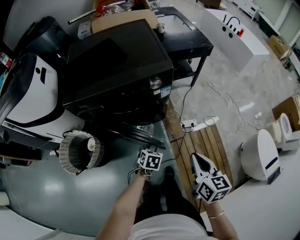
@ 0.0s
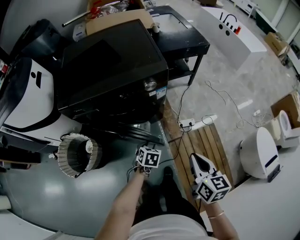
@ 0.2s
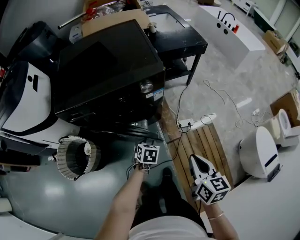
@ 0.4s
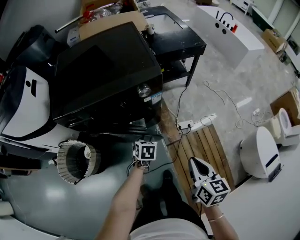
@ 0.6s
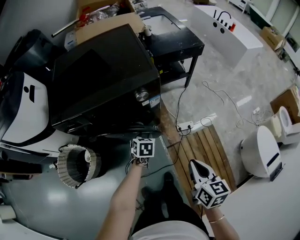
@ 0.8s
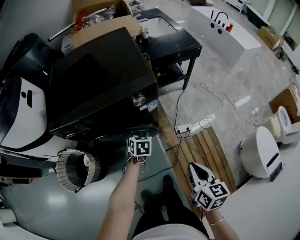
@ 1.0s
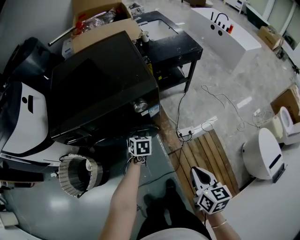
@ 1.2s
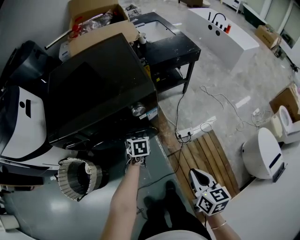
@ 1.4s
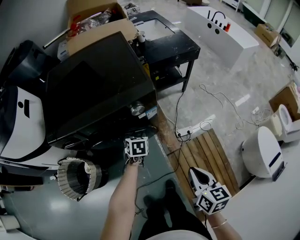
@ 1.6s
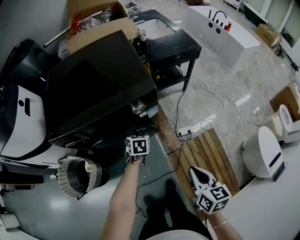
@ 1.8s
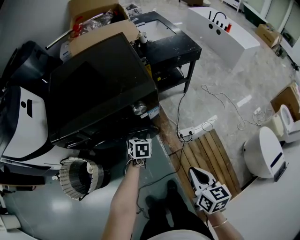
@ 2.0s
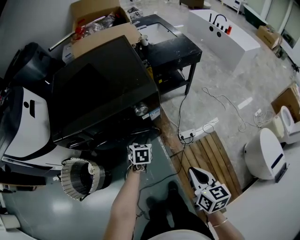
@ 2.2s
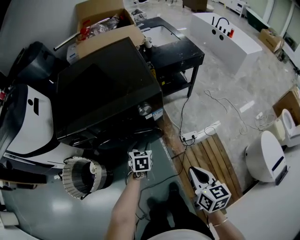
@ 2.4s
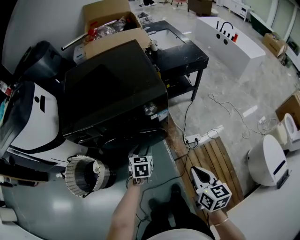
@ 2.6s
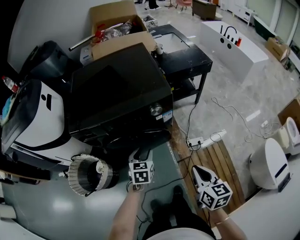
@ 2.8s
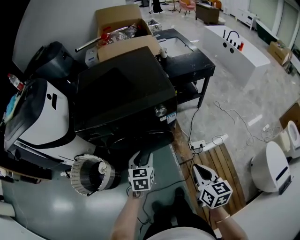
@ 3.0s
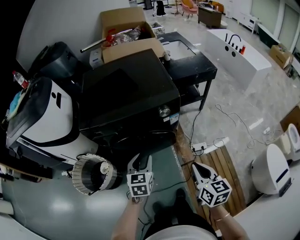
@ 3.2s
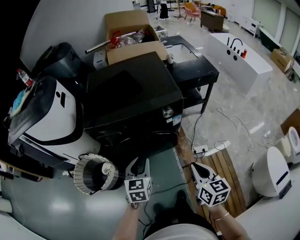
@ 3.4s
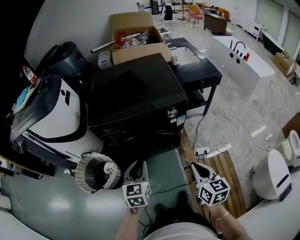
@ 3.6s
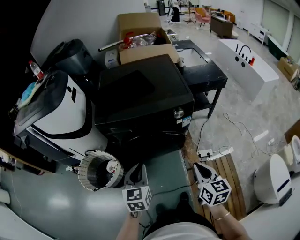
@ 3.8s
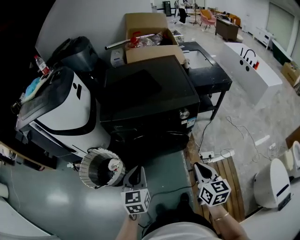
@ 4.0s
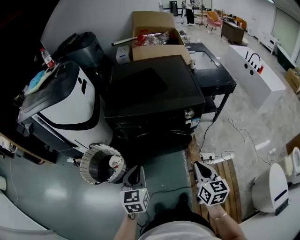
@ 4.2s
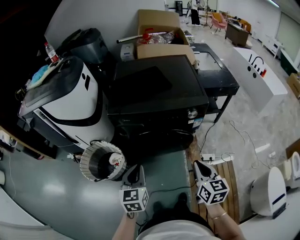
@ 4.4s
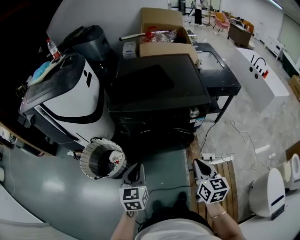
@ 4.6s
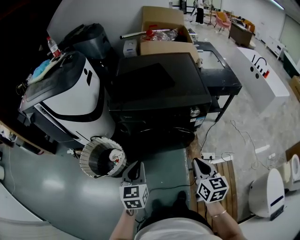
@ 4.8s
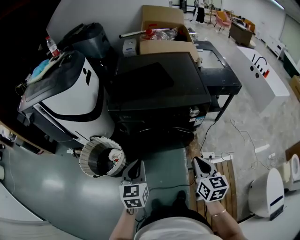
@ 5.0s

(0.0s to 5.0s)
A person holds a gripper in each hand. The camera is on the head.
0.0s - 1.6s: The left gripper heads forward, covering roughly 25 cm. The right gripper travels forward and to the right by about 10 cm.
1.6s - 3.4s: The right gripper travels to the left and upward by about 15 cm. Meanwhile the left gripper moves upward, backward and to the left, about 35 cm, and swivels approximately 30 degrees.
3.4s - 5.0s: Both grippers travel together to the left, roughly 10 cm. The left gripper closes.

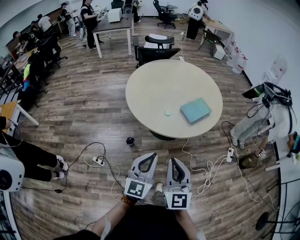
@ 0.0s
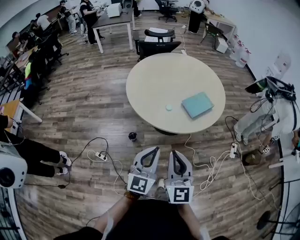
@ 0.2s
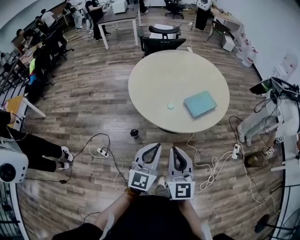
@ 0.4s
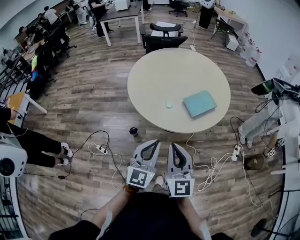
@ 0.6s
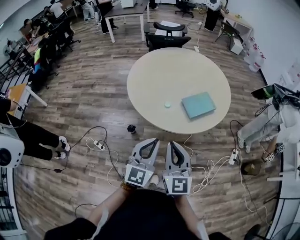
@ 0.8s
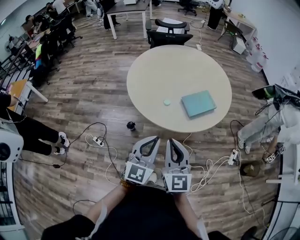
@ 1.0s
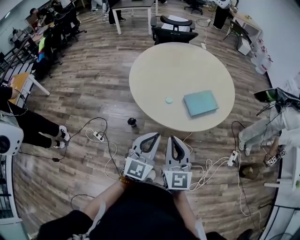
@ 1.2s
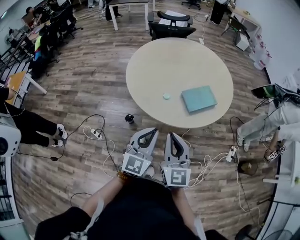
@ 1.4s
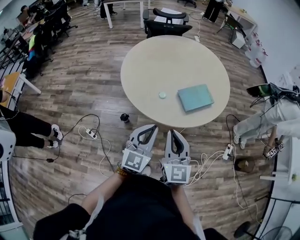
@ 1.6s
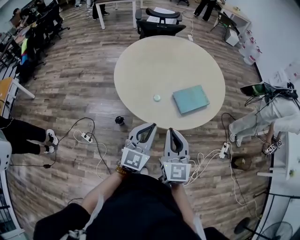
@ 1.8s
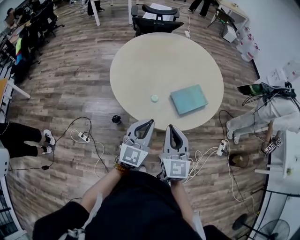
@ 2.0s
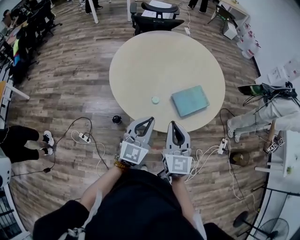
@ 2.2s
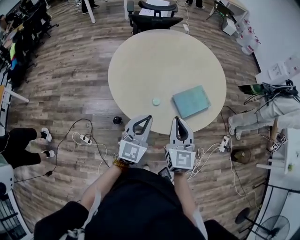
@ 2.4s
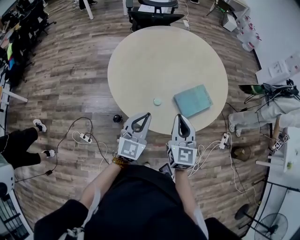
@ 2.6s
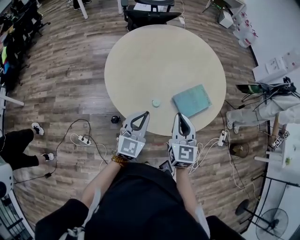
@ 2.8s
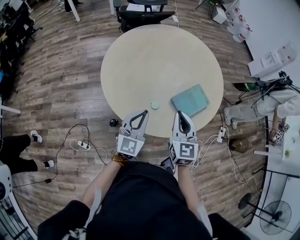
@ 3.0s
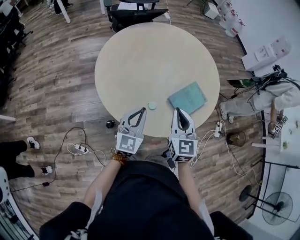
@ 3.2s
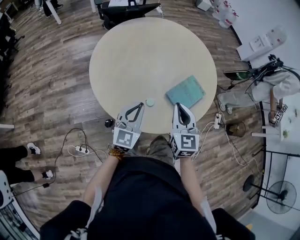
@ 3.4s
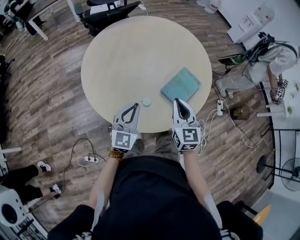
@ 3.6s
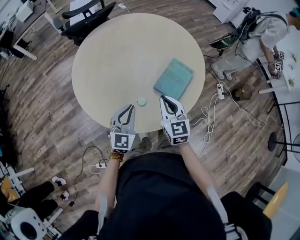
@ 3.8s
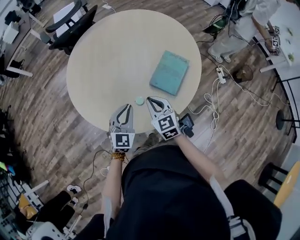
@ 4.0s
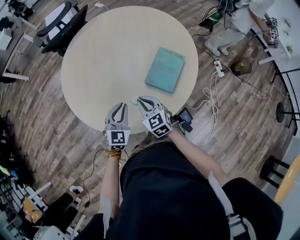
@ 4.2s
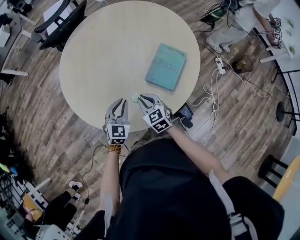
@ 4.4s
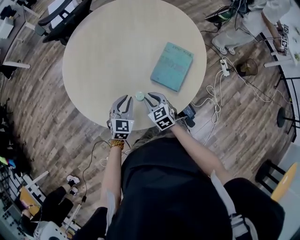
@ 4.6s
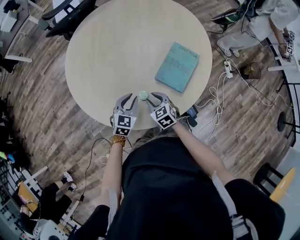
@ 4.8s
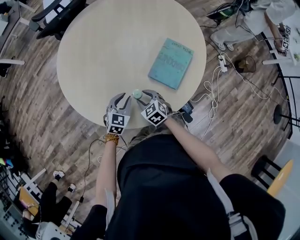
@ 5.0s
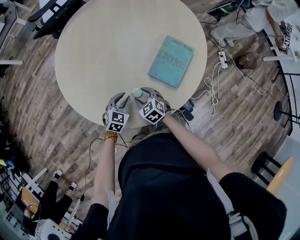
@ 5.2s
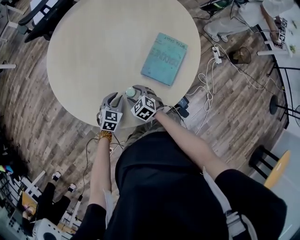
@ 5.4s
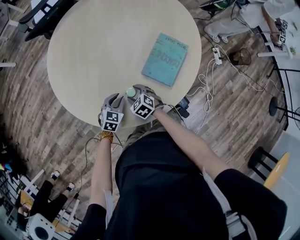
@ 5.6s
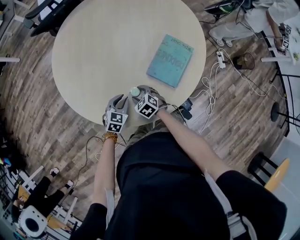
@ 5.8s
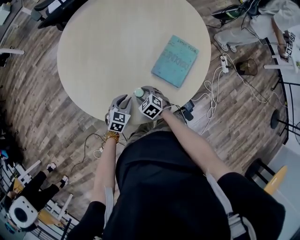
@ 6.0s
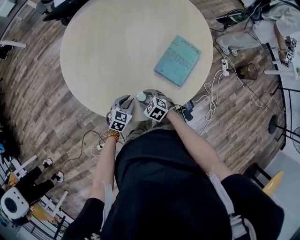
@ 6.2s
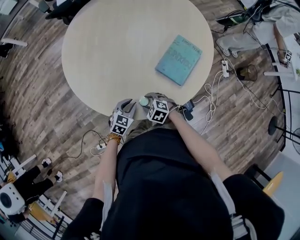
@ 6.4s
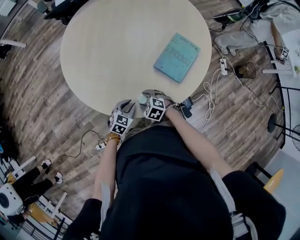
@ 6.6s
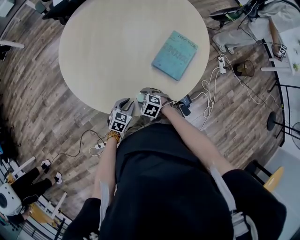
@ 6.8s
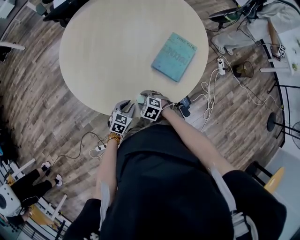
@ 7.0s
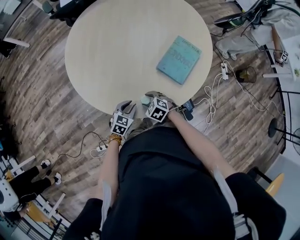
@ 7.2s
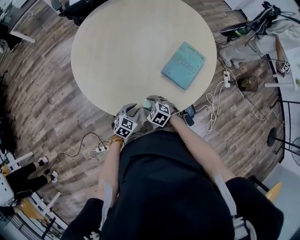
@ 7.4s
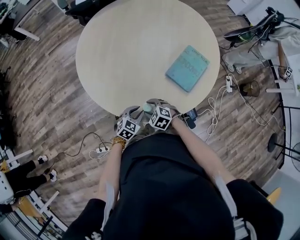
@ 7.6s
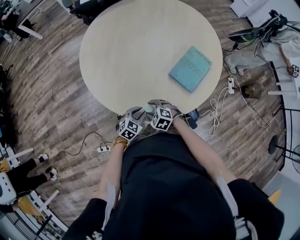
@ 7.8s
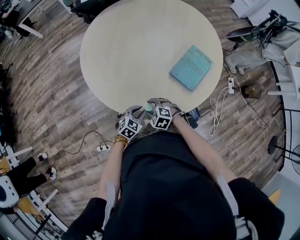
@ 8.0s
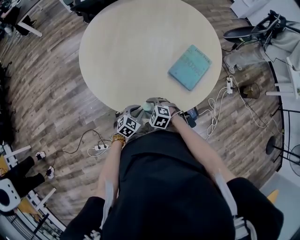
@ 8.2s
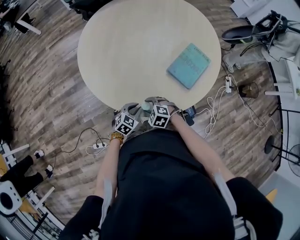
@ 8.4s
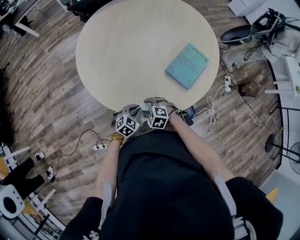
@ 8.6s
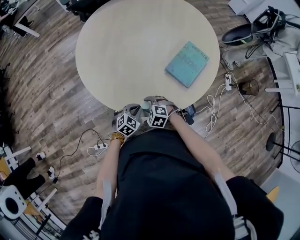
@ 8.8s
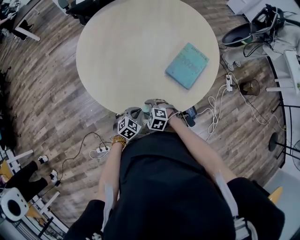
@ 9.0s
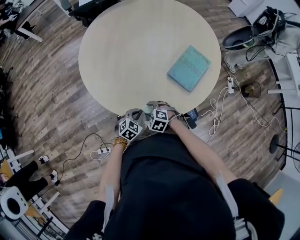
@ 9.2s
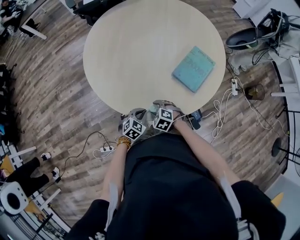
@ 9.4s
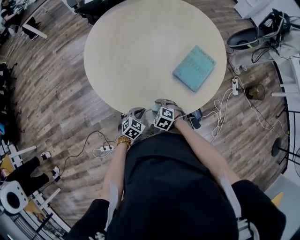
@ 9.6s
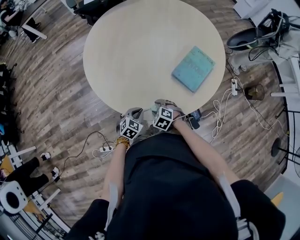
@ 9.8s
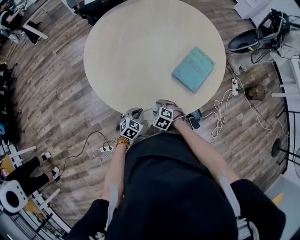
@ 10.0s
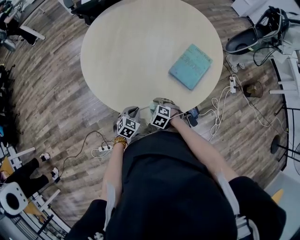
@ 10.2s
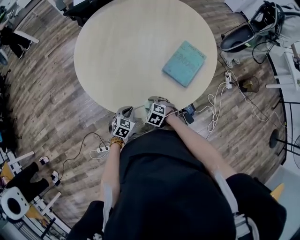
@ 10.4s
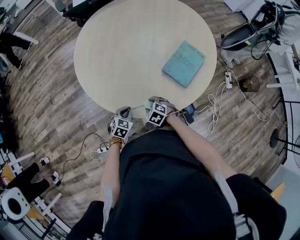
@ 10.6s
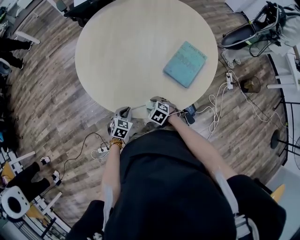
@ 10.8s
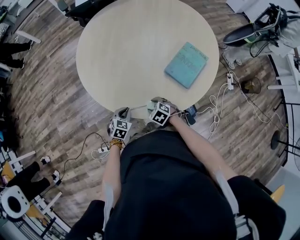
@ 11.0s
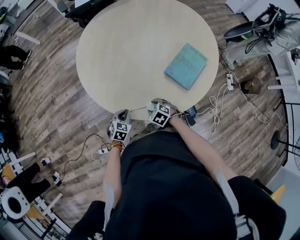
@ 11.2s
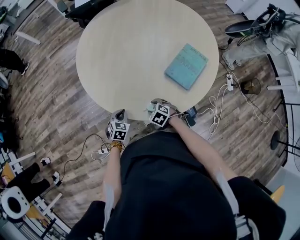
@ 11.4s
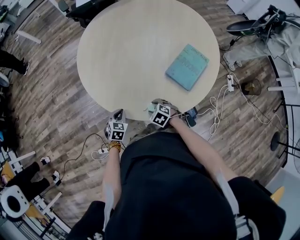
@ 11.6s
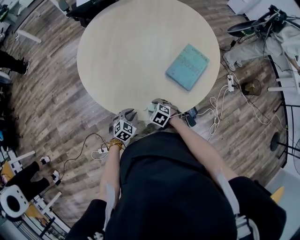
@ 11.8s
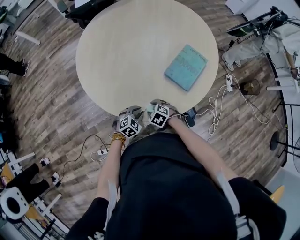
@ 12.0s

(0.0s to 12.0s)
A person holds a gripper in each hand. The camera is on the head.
0.0s - 1.6s: Both grippers travel together forward and to the right, some 20 cm.
1.6s - 3.0s: The right gripper heads forward, covering some 25 cm. The left gripper heads forward and to the left, covering approximately 25 cm.
3.0s - 4.4s: The left gripper shifts roughly 20 cm downward and forward, and swivels roughly 30 degrees. Meanwhile the right gripper travels downward by some 20 cm.
4.4s - 6.0s: Both grippers travel together downward, some 15 cm. The right gripper changes its angle by about 30 degrees, and opens up, while the left gripper changes its angle by approximately 20 degrees.
6.0s - 7.6s: Both grippers travel together backward, about 10 cm. The right gripper changes its angle by approximately 20 degrees.
7.6s - 9.0s: The left gripper closes its fingers.
9.0s - 10.4s: There are only small adjustments of the grippers.
10.4s - 12.0s: The left gripper ends up roughly 5 cm from where it was, swivels approximately 20 degrees, and opens its fingers.

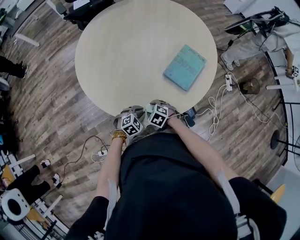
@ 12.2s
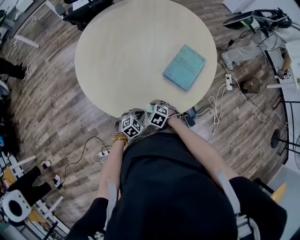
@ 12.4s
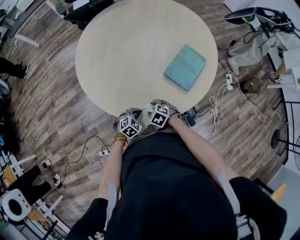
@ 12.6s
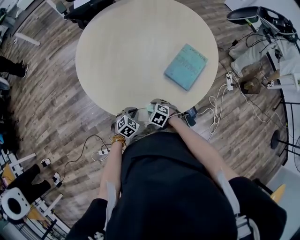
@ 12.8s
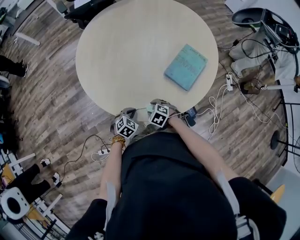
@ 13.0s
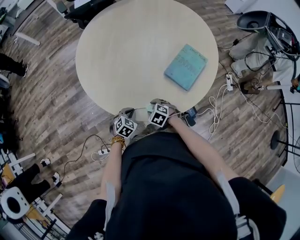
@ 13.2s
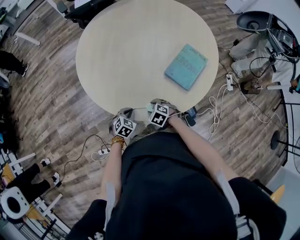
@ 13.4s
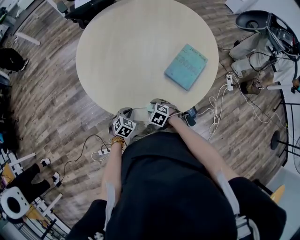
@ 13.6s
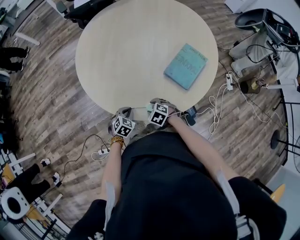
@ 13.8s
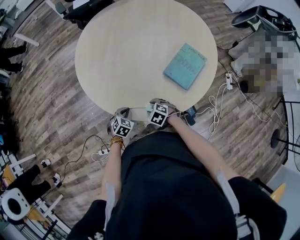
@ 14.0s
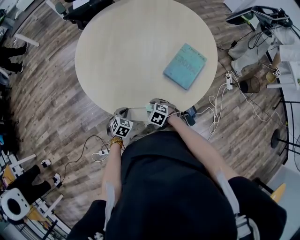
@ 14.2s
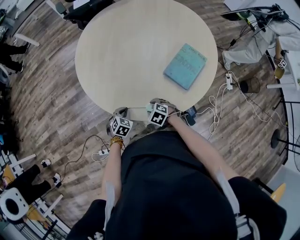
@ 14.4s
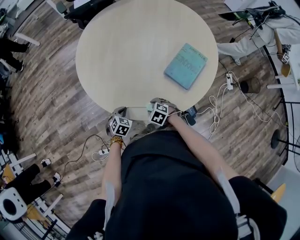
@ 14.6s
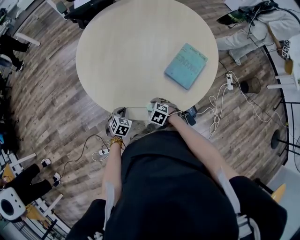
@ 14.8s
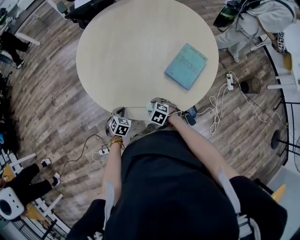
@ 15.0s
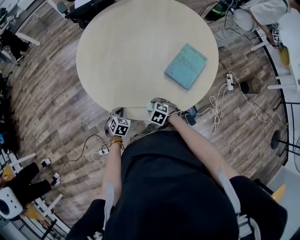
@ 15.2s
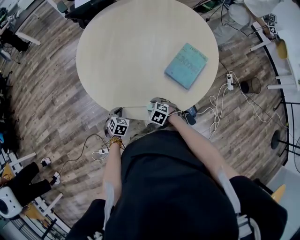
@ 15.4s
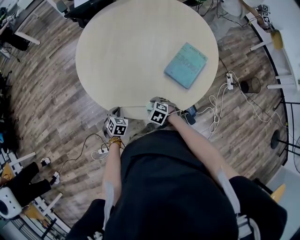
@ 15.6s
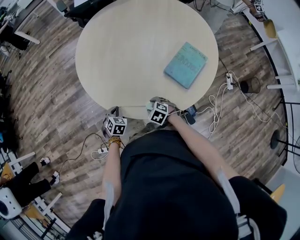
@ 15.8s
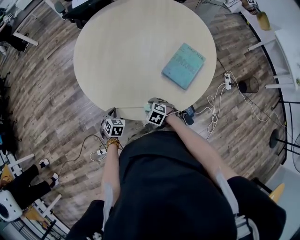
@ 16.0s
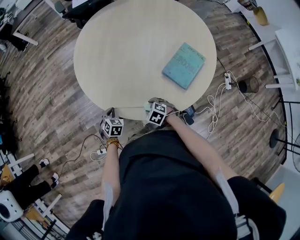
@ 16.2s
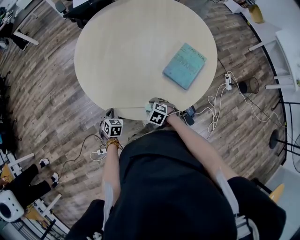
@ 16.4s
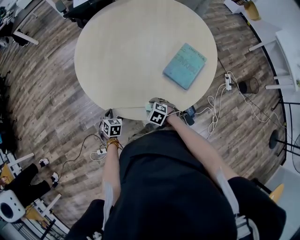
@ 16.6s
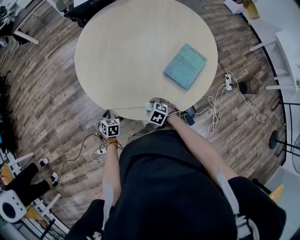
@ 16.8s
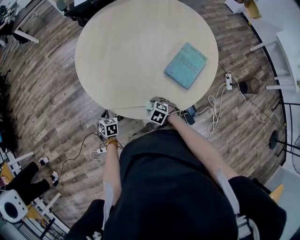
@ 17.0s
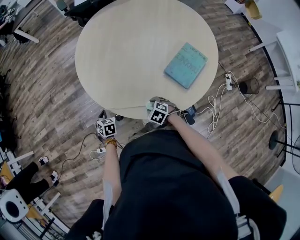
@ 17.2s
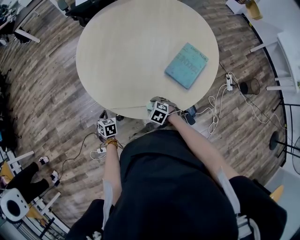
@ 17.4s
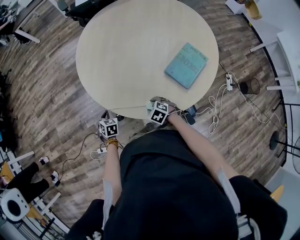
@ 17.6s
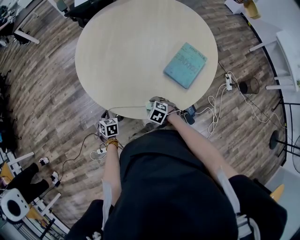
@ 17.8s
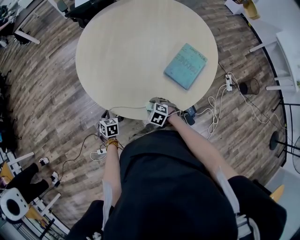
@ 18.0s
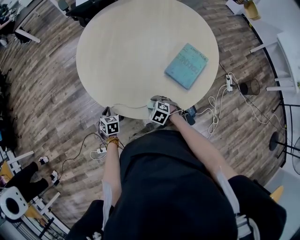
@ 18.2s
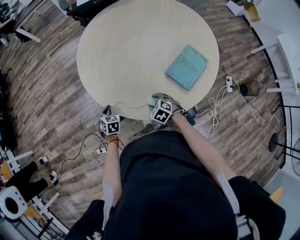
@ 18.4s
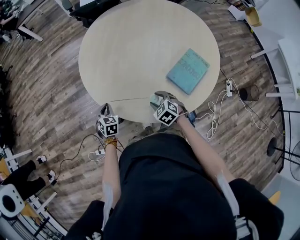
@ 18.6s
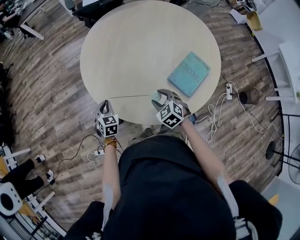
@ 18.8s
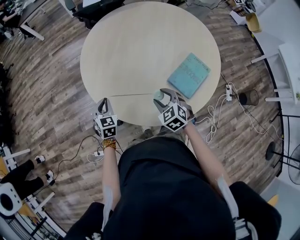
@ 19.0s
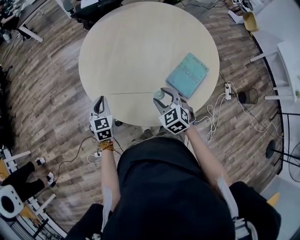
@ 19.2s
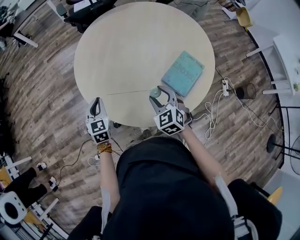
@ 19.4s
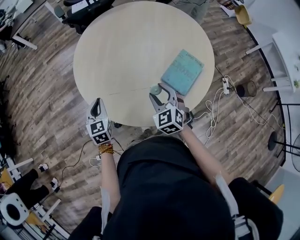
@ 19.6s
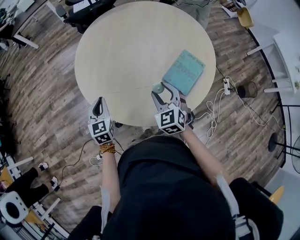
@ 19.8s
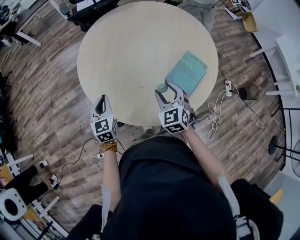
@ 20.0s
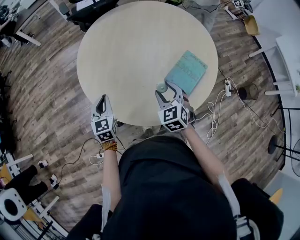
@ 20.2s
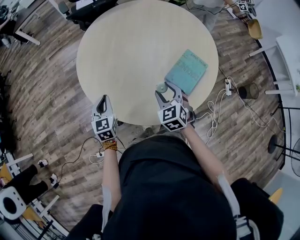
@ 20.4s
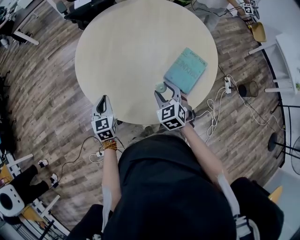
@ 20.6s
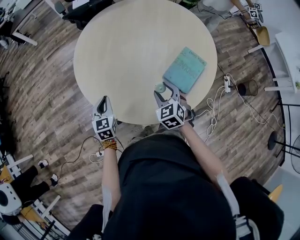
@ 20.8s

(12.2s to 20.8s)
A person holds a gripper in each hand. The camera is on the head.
12.2s - 13.6s: The left gripper moves to the left, roughly 5 cm, and changes its angle by some 30 degrees.
13.6s - 15.0s: The grippers stay close to where they were, moving slightly.
15.0s - 16.6s: The left gripper goes roughly 5 cm to the left.
16.6s - 18.0s: The grippers move only a little.
18.0s - 19.4s: Both grippers move upward, approximately 20 cm. The left gripper turns by approximately 30 degrees, while the right gripper swivels roughly 40 degrees.
19.4s - 20.8s: The grippers make only small movements.
